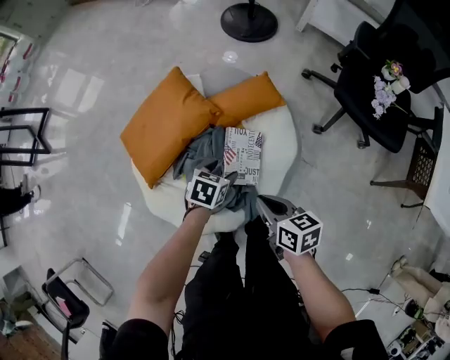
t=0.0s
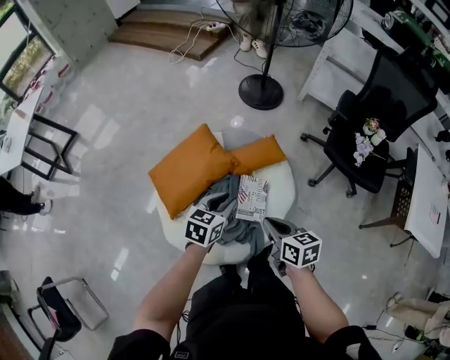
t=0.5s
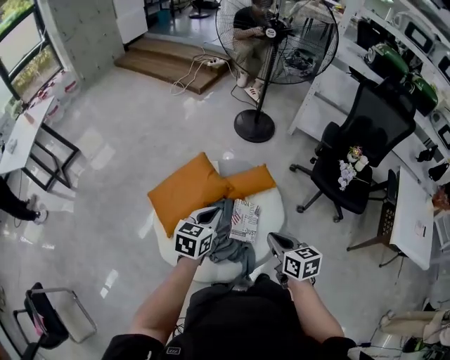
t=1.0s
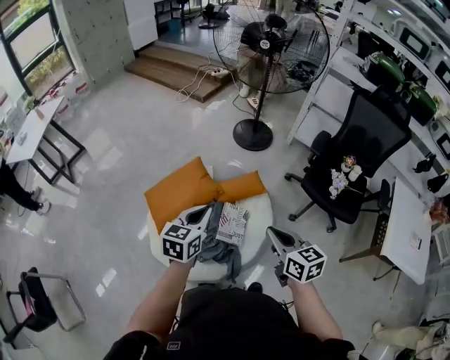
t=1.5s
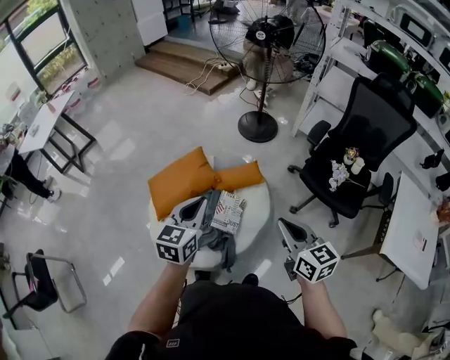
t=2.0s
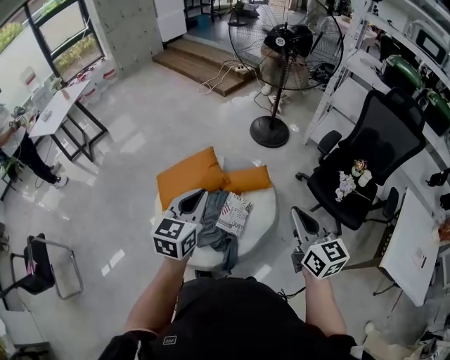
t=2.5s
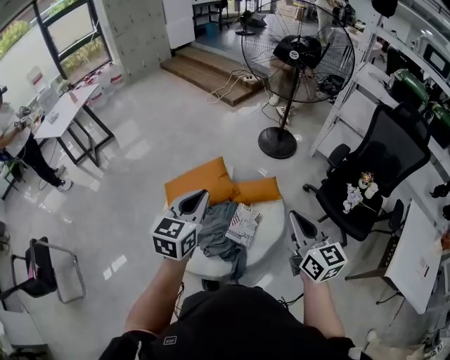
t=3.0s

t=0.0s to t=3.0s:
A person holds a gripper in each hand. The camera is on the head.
t=0.0s to t=1.5s: Both grippers move upward, roughly 35 cm. The right gripper changes its angle by about 30 degrees, while the left gripper points its fingers approximately 30 degrees further upward, and closes its fingers.
t=1.5s to t=3.0s: The right gripper shifts about 10 cm upward and to the right. The left gripper goes about 10 cm upward.

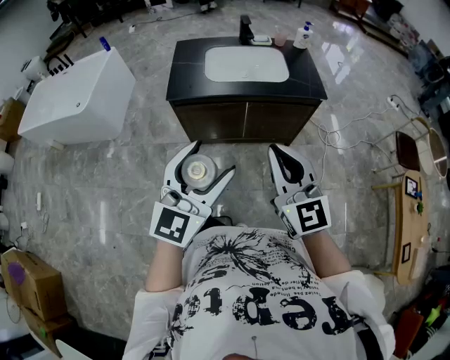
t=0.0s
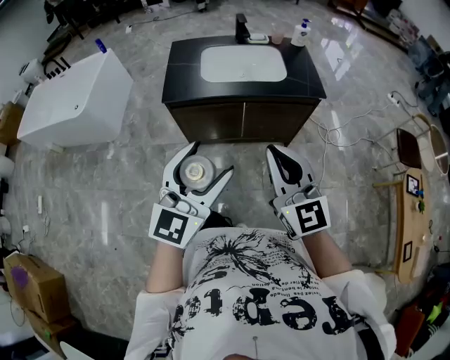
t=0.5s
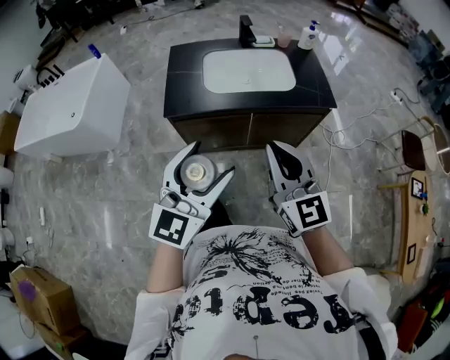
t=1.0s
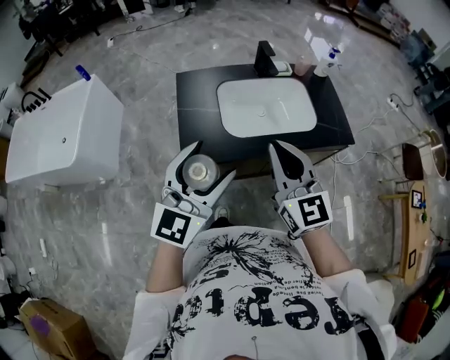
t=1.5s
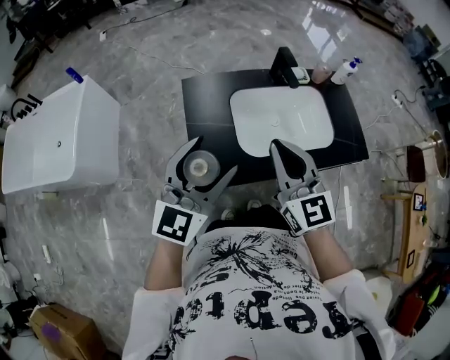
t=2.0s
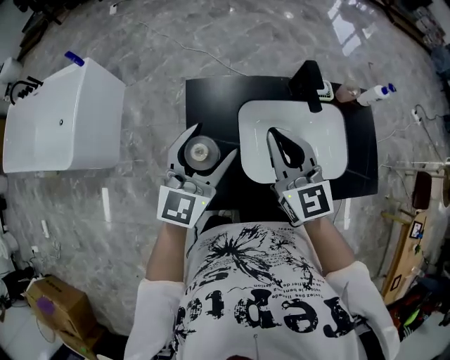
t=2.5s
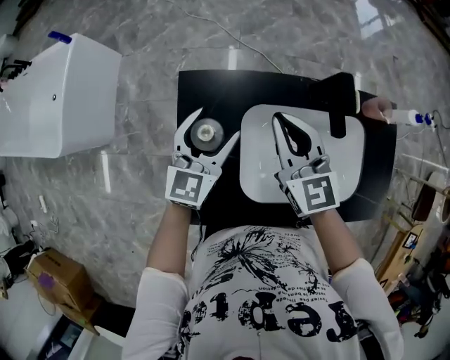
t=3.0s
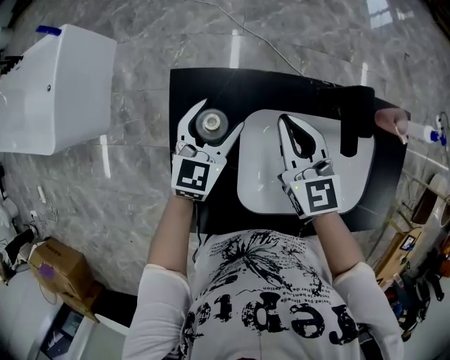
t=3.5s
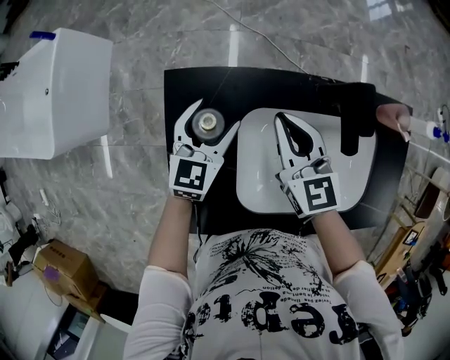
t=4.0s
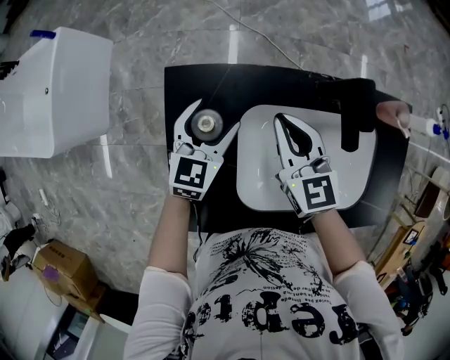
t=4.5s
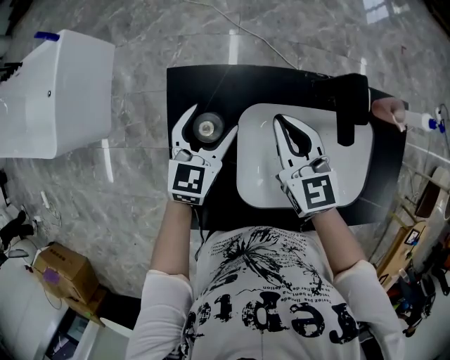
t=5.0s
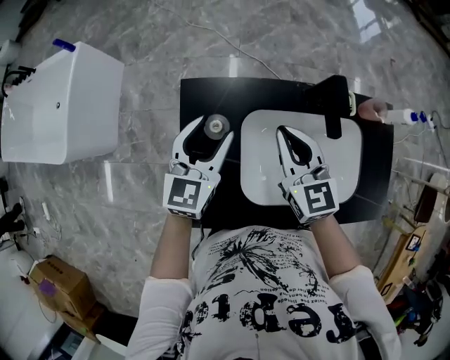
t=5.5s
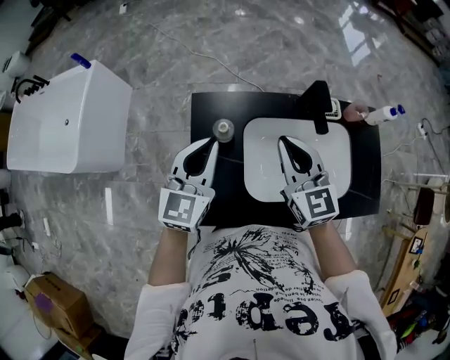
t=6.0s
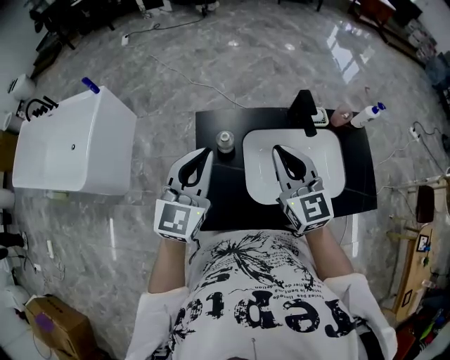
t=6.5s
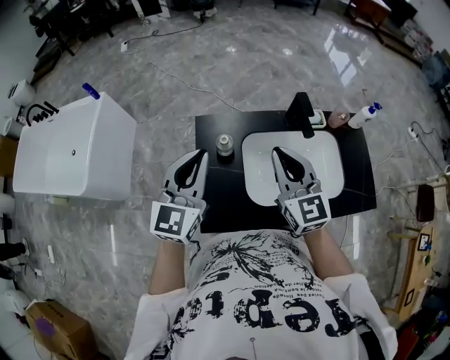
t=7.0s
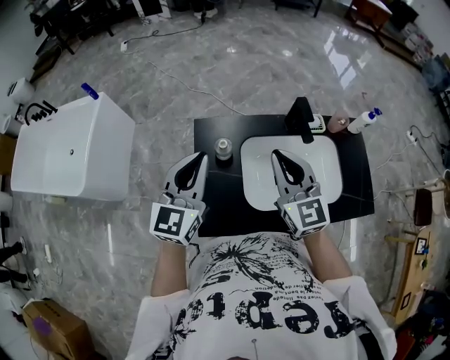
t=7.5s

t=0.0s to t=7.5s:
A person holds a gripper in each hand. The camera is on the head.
t=0.0s to t=2.0s: The two grippers travel together, forward and to the left, some 60 cm.
t=2.0s to t=4.0s: Both grippers travel together forward and downward, approximately 50 cm. The right gripper rotates some 20 degrees; the left gripper swivels roughly 30 degrees.
t=4.0s to t=5.5s: The two grippers go about 15 cm upward and backward.
t=5.5s to t=7.5s: Both grippers move upward and backward, roughly 20 cm. The left gripper closes up.

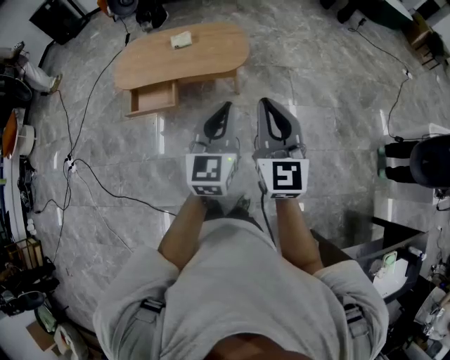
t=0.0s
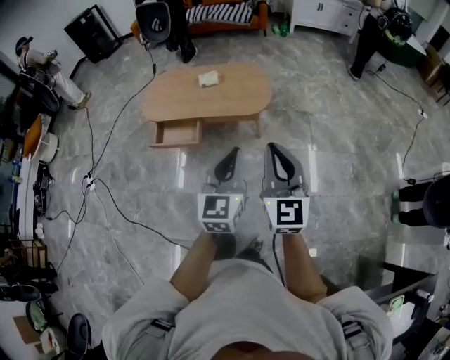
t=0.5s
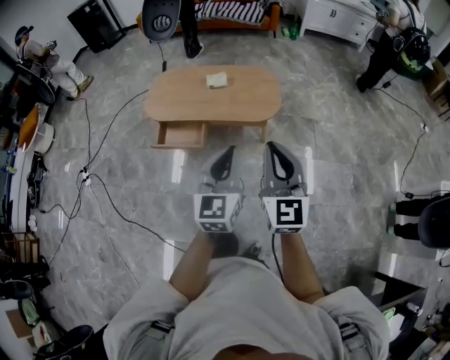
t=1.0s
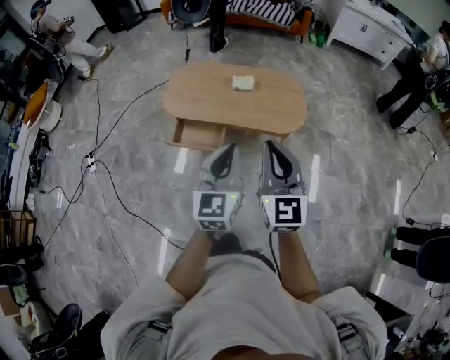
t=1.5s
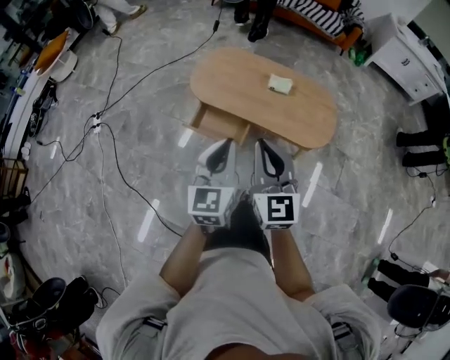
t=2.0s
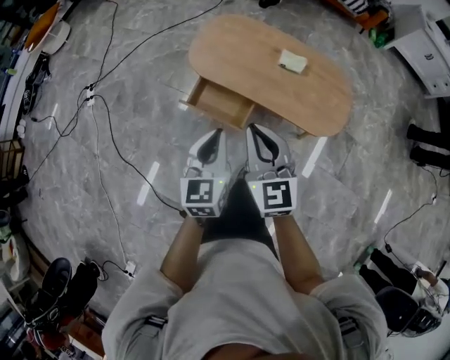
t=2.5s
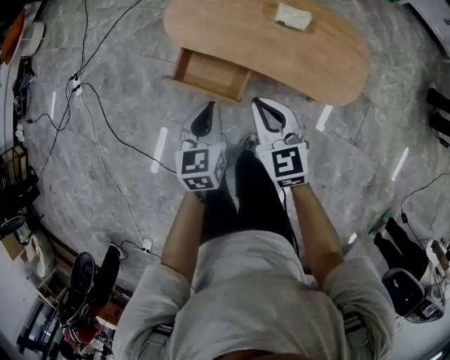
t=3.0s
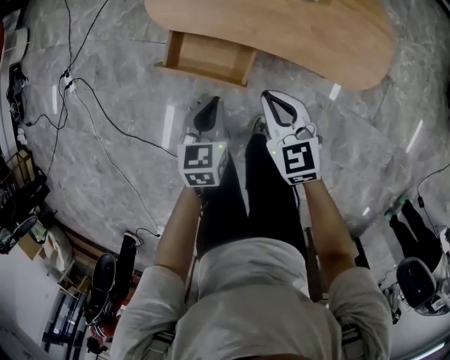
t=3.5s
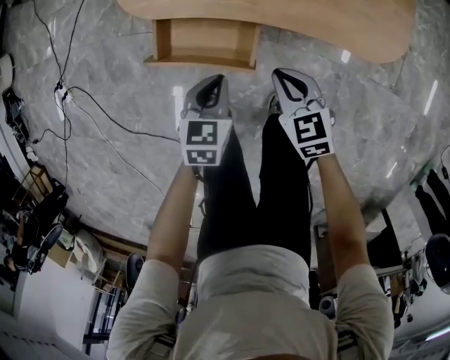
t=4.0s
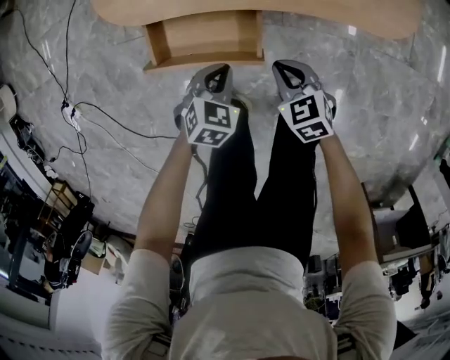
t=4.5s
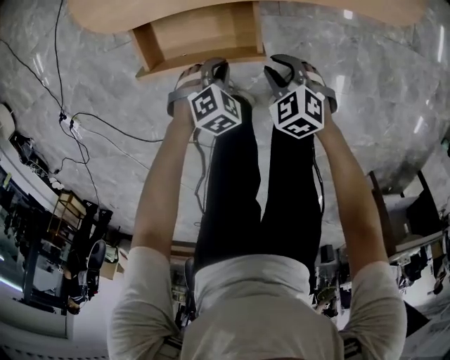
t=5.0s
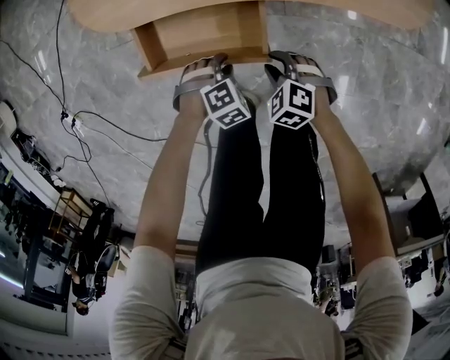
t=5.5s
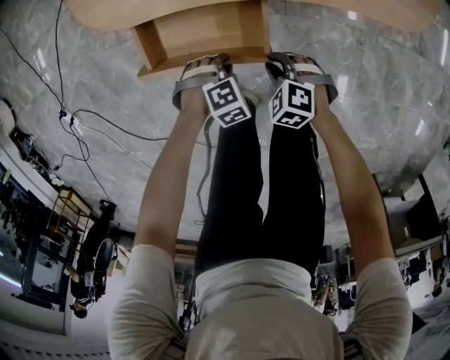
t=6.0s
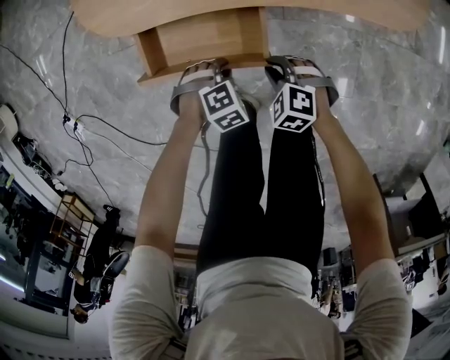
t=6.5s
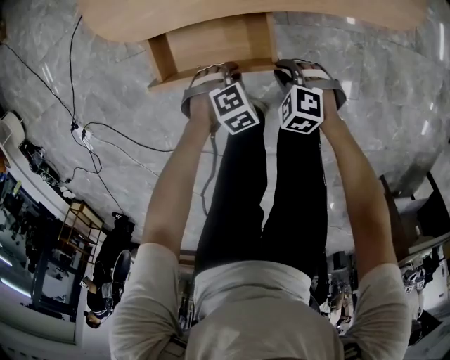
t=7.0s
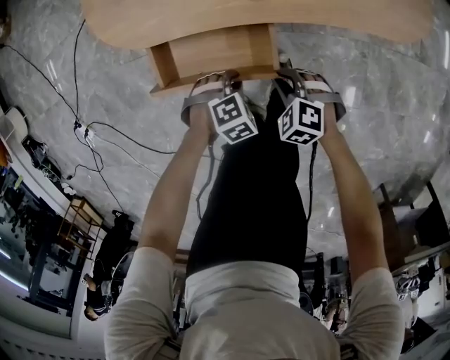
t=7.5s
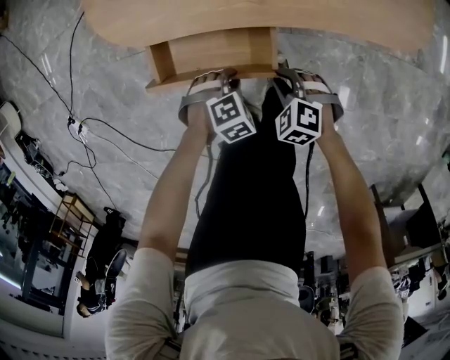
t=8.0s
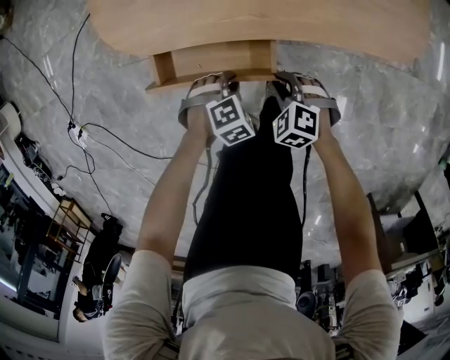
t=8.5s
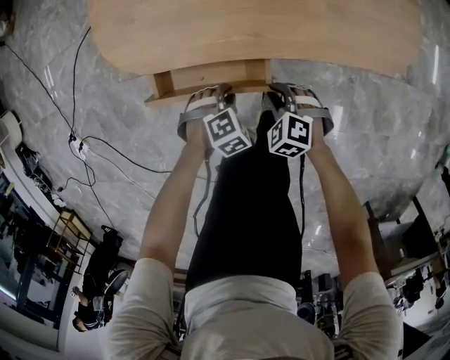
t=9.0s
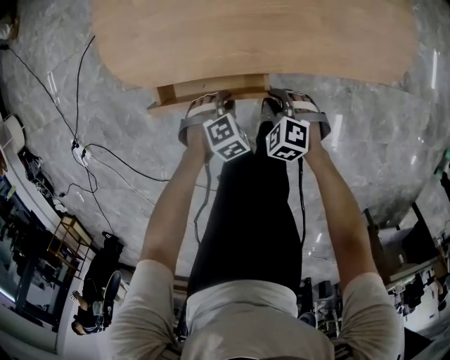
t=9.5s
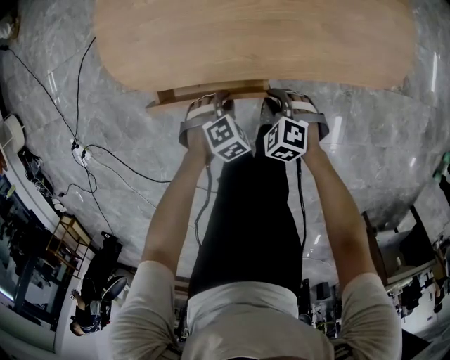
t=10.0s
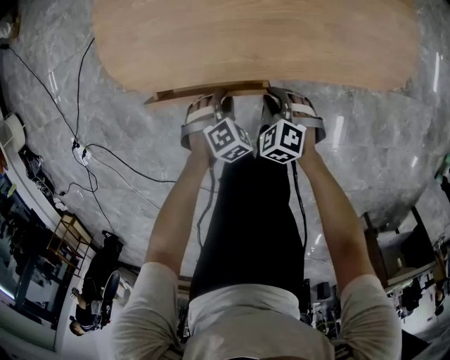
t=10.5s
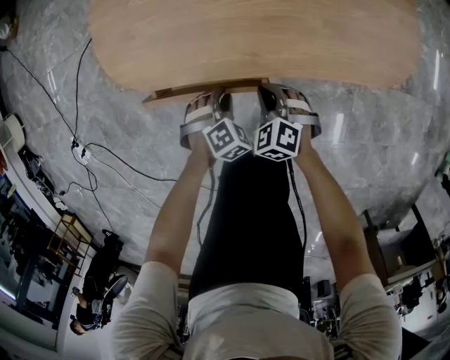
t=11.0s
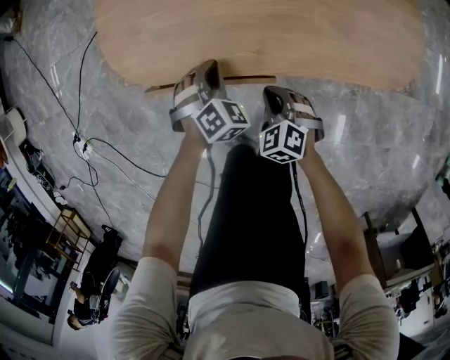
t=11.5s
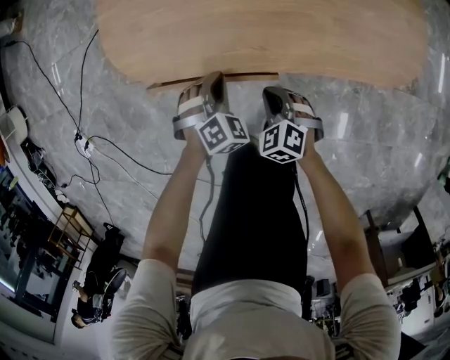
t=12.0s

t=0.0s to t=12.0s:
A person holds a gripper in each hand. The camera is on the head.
t=0.0s to t=2.0s: Both grippers are carried roughly 40 cm. The left gripper turns by roughly 30 degrees. Meanwhile the right gripper swivels about 30 degrees.
t=2.0s to t=4.0s: Both grippers move downward, approximately 50 cm. The left gripper tips its fingers downward by approximately 40 degrees. The right gripper angles its fingers downward, by about 40 degrees.
t=4.0s to t=6.0s: The two grippers go some 20 cm downward. The right gripper changes its angle by roughly 40 degrees; the left gripper rotates around the line of its fingers by approximately 70 degrees, clockwise from behind.
t=6.0s to t=8.0s: There are only small adjustments of the grippers.
t=8.0s to t=10.0s: The right gripper moves some 10 cm. Meanwhile the left gripper ends up approximately 10 cm from where it was.
t=10.0s to t=12.0s: The left gripper shifts by approximately 10 cm, turns by some 20 degrees, and closes.

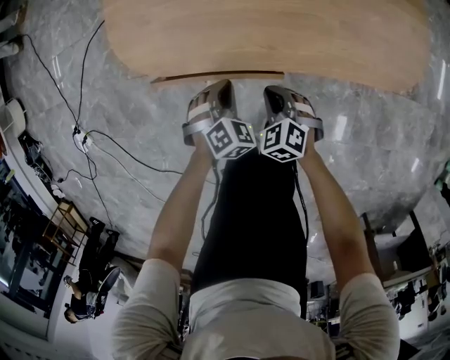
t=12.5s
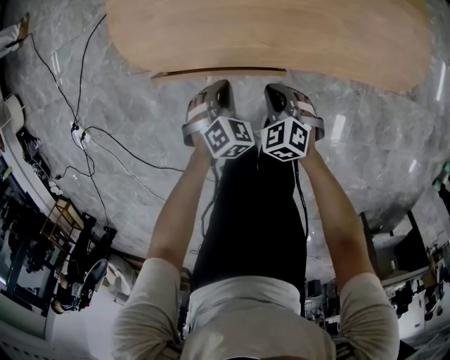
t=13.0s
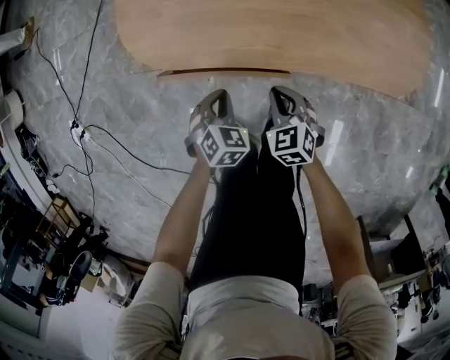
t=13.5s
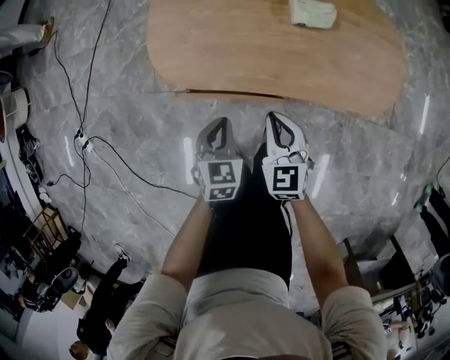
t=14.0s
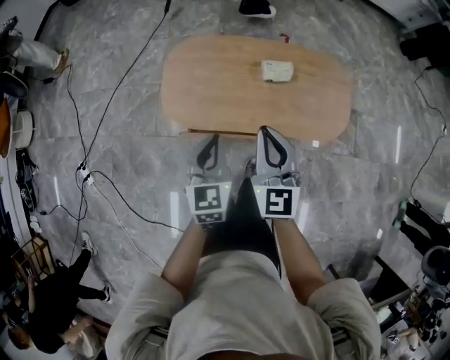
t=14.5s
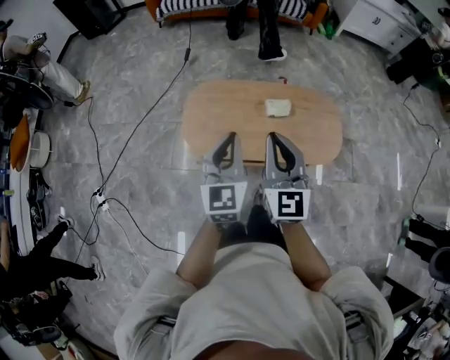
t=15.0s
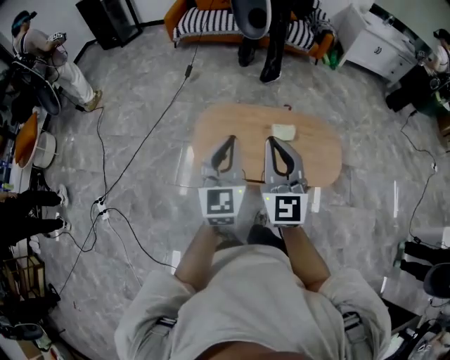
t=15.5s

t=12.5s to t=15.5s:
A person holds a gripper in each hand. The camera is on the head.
t=12.5s to t=14.0s: The grippers both shift upward by roughly 20 cm. The right gripper changes its angle by about 30 degrees; the left gripper turns by about 40 degrees.
t=14.0s to t=15.5s: Both grippers move upward, approximately 50 cm. The right gripper tilts its fingers roughly 40 degrees upward; the left gripper points its fingers roughly 50 degrees further upward.
